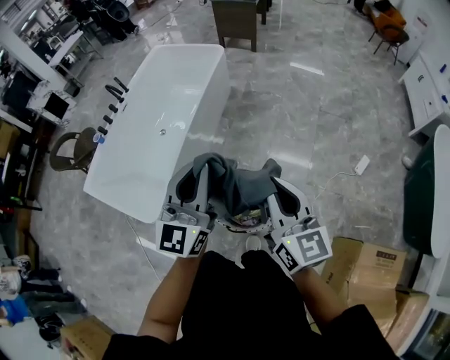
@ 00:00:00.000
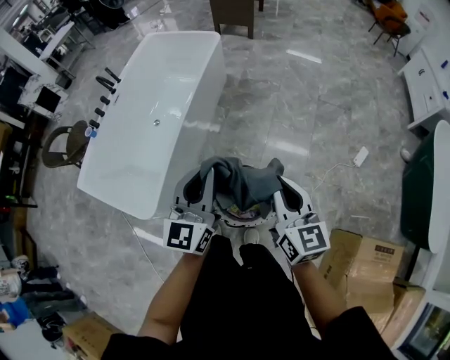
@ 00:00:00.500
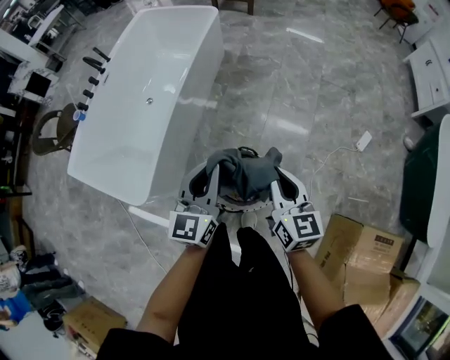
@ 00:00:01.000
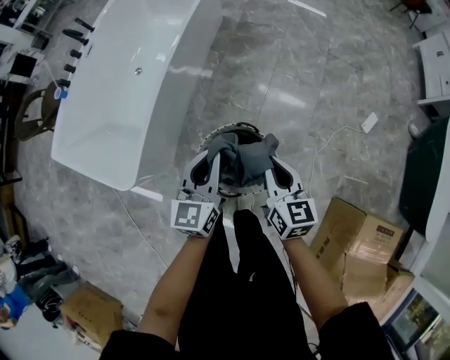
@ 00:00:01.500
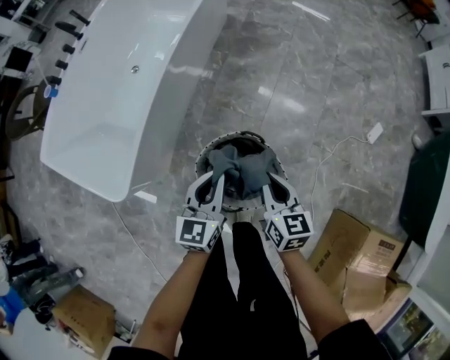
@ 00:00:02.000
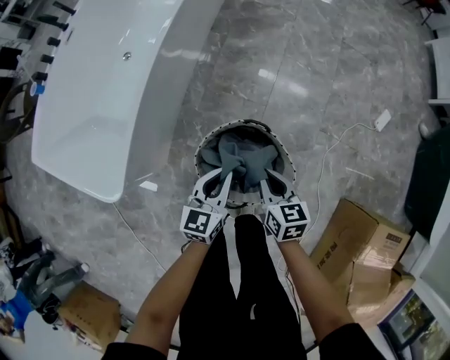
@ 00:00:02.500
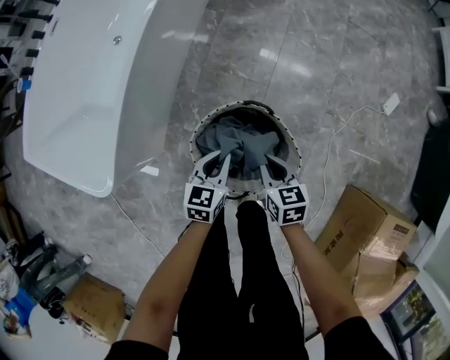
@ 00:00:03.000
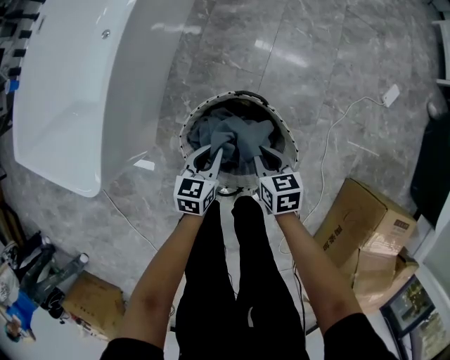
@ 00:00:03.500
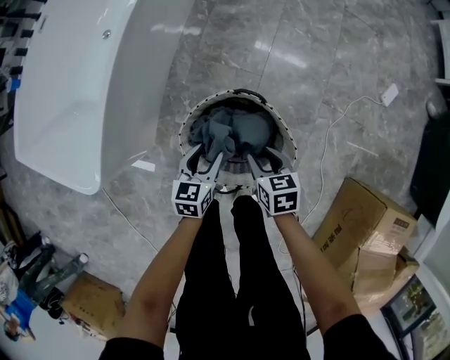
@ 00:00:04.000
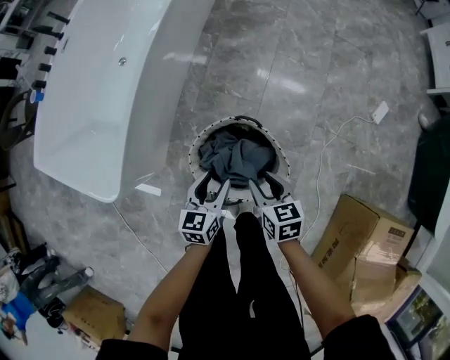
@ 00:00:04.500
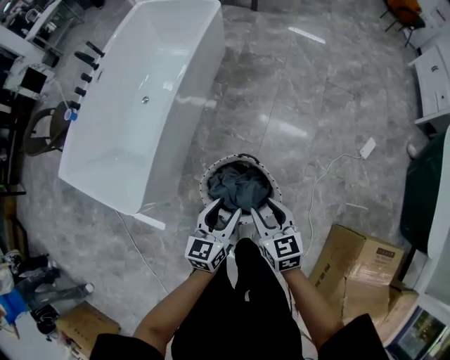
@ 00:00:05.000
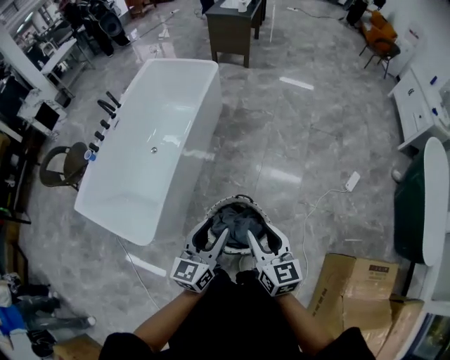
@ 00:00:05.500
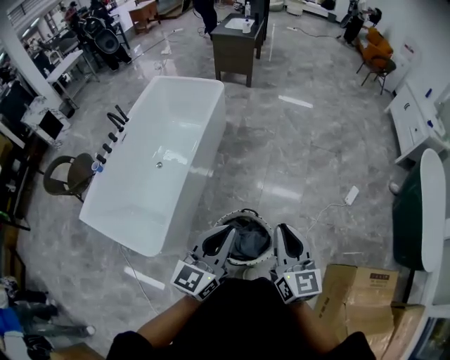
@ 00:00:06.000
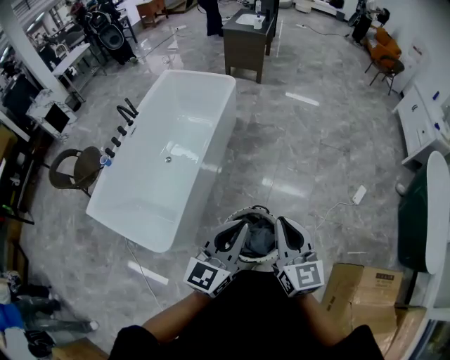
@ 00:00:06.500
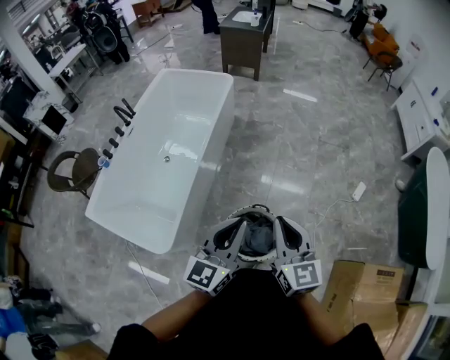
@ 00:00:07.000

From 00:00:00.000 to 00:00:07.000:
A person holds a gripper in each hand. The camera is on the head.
From 00:00:00.000 to 00:00:02.000: Both grippers move downward, about 40 cm. The right gripper changes its angle by roughly 30 degrees. Meanwhile the left gripper turns by about 30 degrees.
From 00:00:02.000 to 00:00:03.500: Both grippers travel together downward, approximately 25 cm. The left gripper swivels approximately 20 degrees, while the right gripper changes its angle by approximately 20 degrees.
From 00:00:03.500 to 00:00:05.000: Both grippers travel together upward, some 35 cm. The left gripper opens, while the right gripper swivels about 20 degrees, and opens up.
From 00:00:05.000 to 00:00:07.000: Both grippers travel together upward, some 30 cm. The right gripper rotates approximately 30 degrees, and closes up, while the left gripper turns by roughly 20 degrees, and closes.

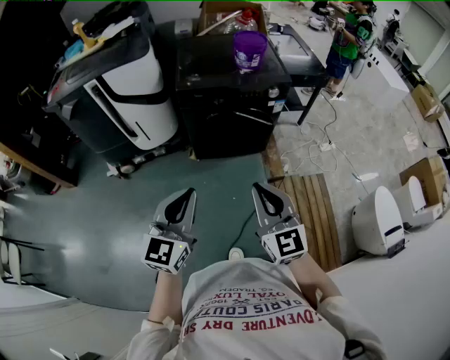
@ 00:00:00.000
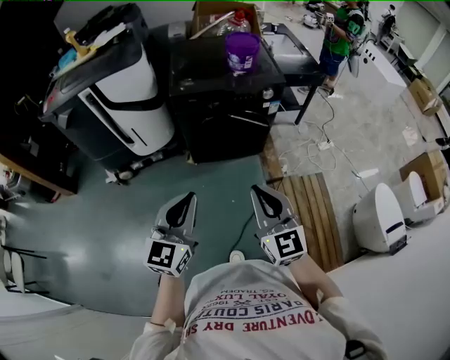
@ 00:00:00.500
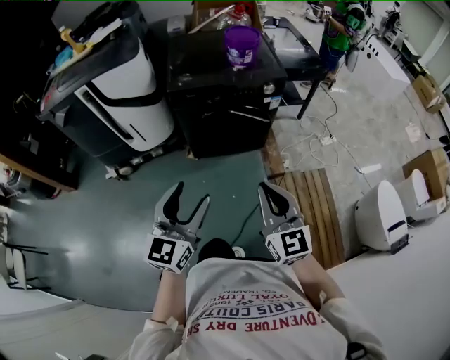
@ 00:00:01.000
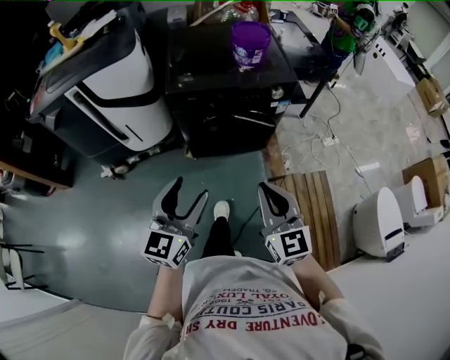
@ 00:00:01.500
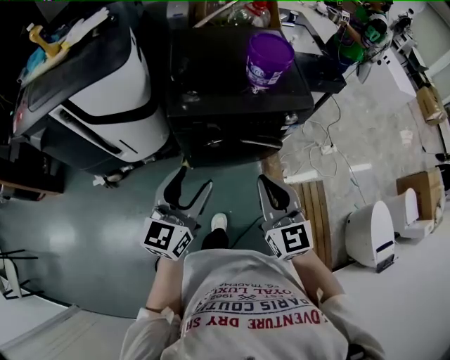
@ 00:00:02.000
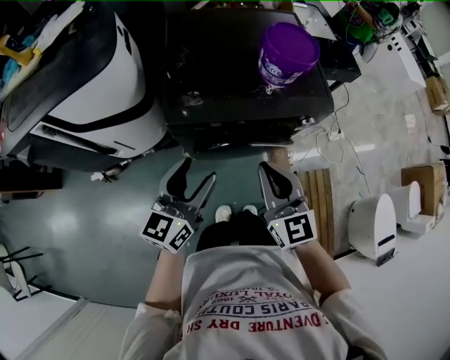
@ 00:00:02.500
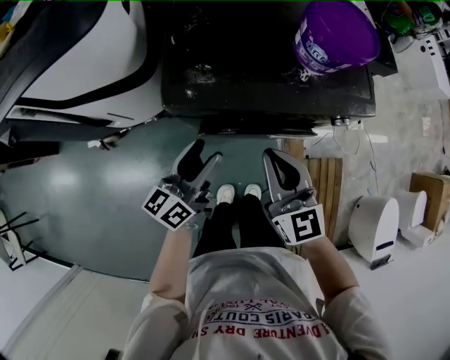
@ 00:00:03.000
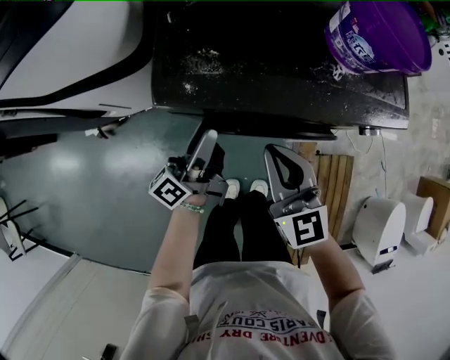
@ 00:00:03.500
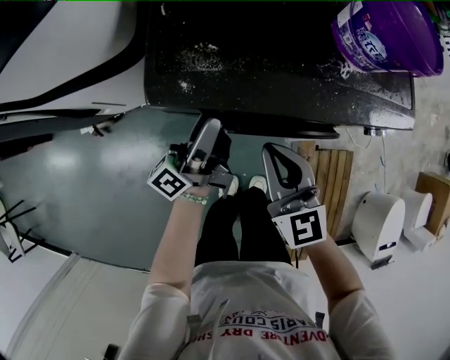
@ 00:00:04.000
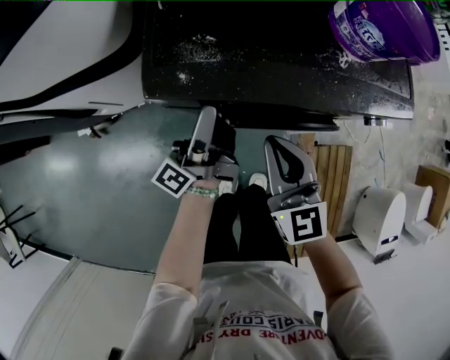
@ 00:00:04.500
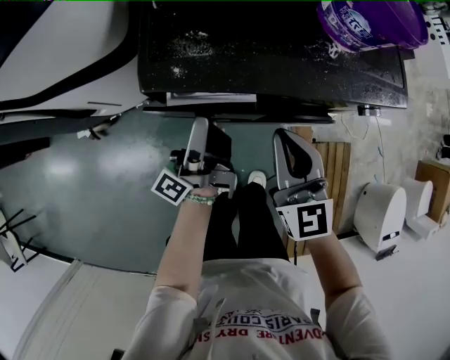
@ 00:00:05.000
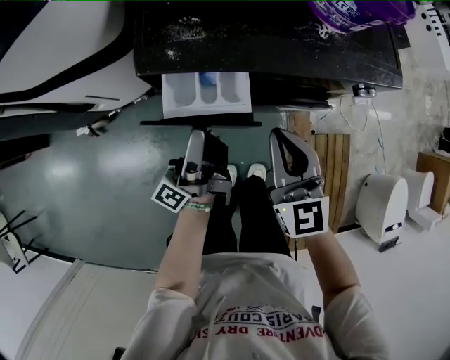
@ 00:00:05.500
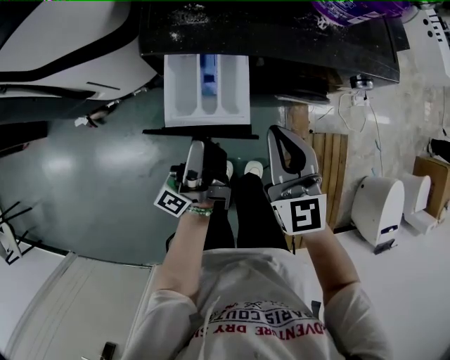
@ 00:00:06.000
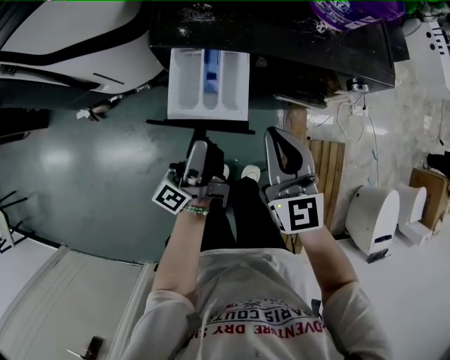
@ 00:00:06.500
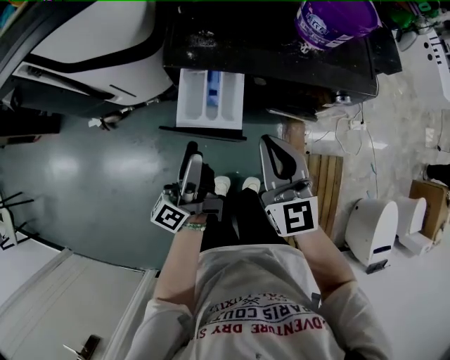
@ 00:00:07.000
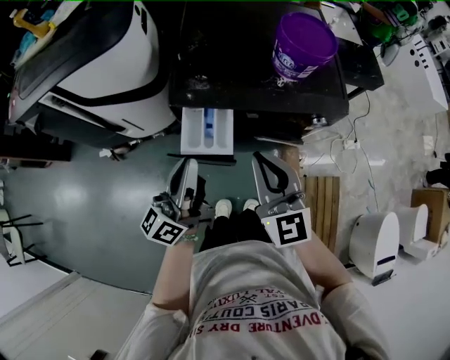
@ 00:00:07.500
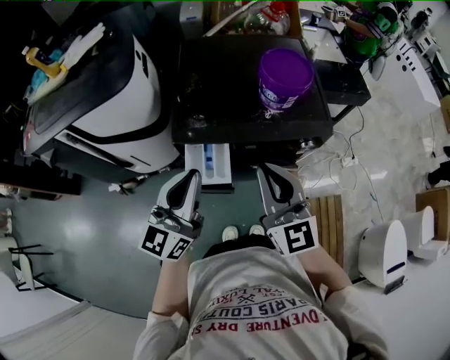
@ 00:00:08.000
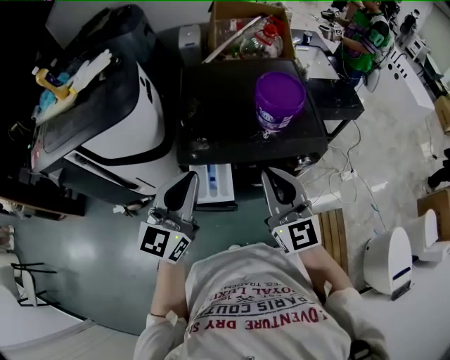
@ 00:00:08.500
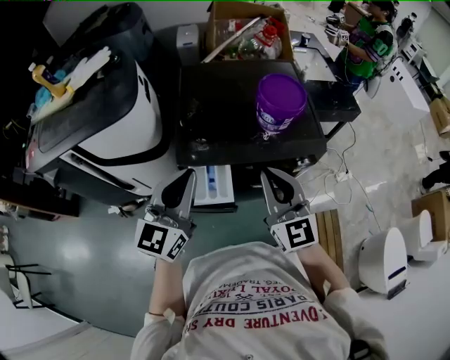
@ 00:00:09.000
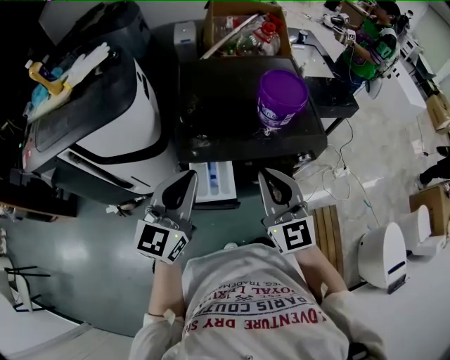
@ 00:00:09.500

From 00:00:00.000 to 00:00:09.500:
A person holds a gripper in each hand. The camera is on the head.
From 00:00:00.000 to 00:00:02.000: The grippers both shift forward by roughly 30 cm. The left gripper opens its fingers.
From 00:00:02.000 to 00:00:04.000: The left gripper travels forward and downward by about 35 cm, and rolls counterclockwise, seen from behind, by roughly 60 degrees. The right gripper heads downward and forward, covering about 30 cm.
From 00:00:04.000 to 00:00:05.500: The right gripper goes roughly 5 cm backward. Meanwhile the left gripper moves backward, about 10 cm.
From 00:00:05.500 to 00:00:07.500: The grippers both shift upward by about 20 cm. The left gripper changes its angle by about 40 degrees, and closes.
From 00:00:07.500 to 00:00:09.500: The right gripper shifts some 5 cm upward, while the left gripper heads upward and forward, covering some 10 cm, and twists some 40 degrees clockwise, seen from behind.

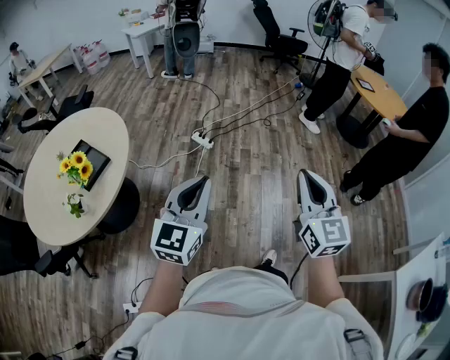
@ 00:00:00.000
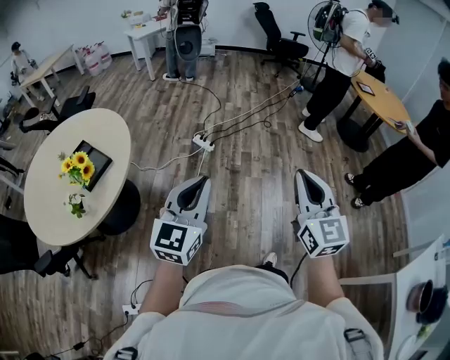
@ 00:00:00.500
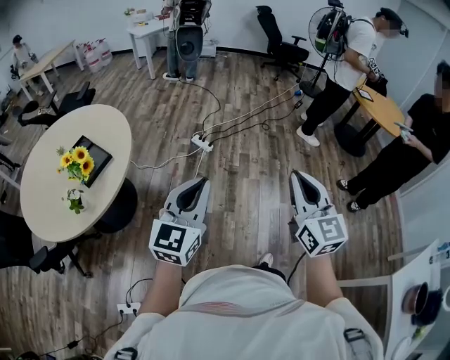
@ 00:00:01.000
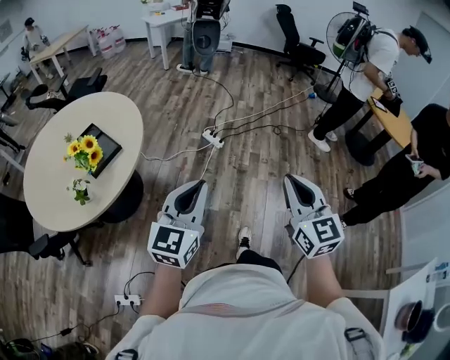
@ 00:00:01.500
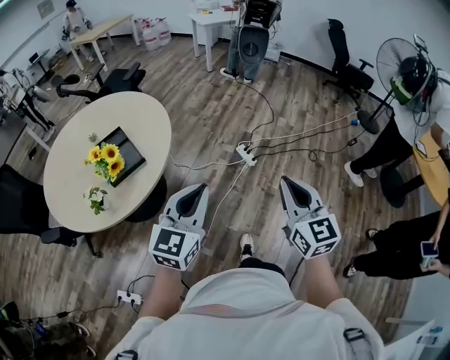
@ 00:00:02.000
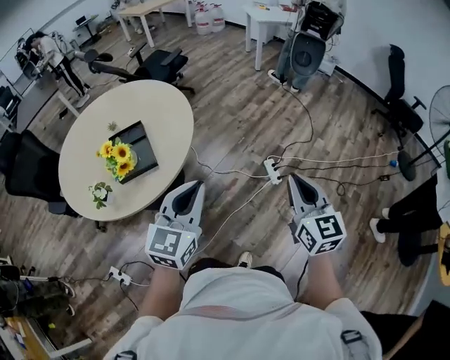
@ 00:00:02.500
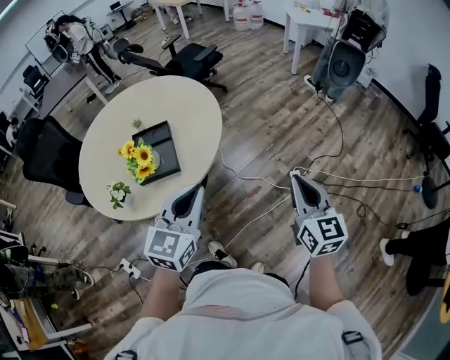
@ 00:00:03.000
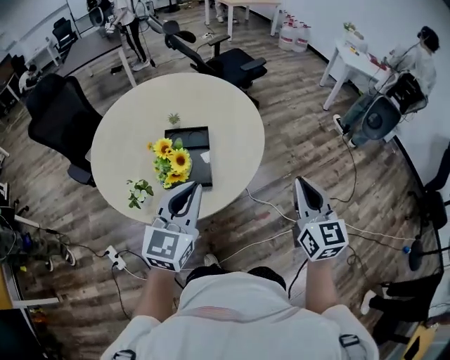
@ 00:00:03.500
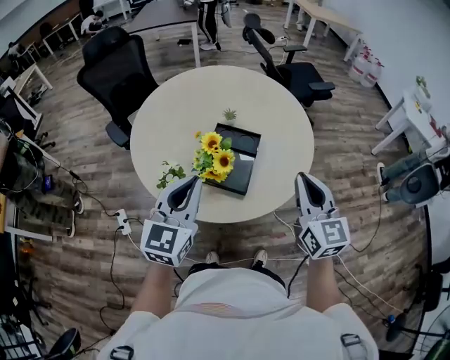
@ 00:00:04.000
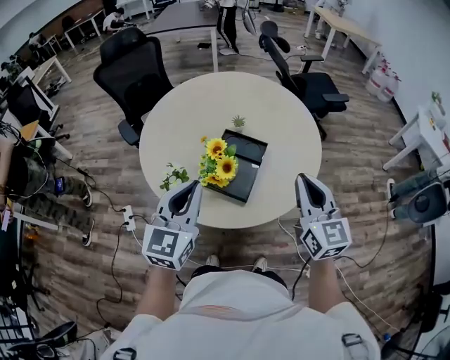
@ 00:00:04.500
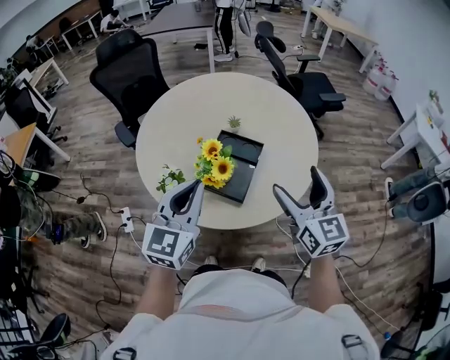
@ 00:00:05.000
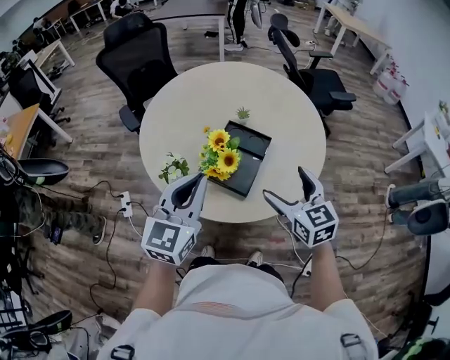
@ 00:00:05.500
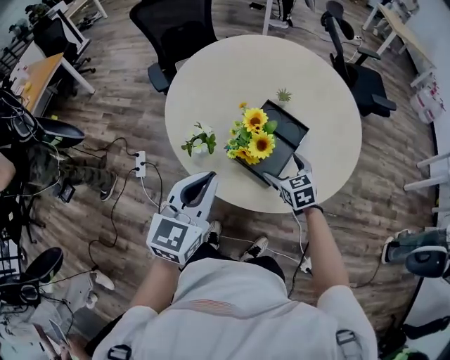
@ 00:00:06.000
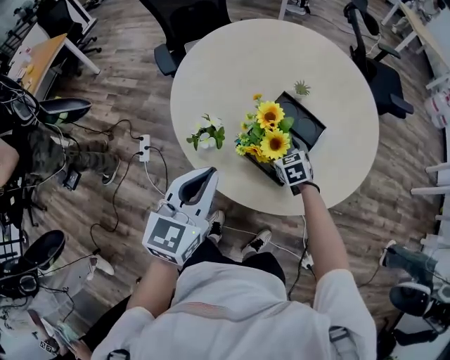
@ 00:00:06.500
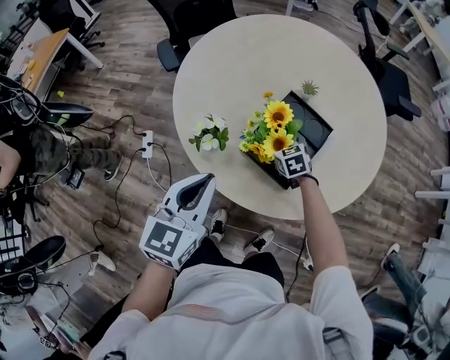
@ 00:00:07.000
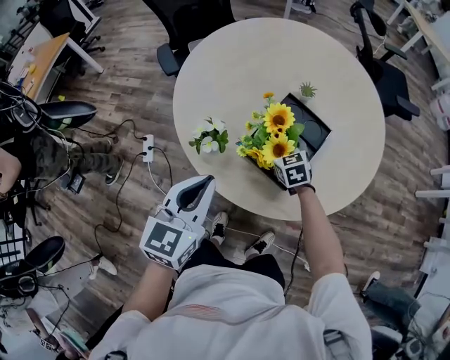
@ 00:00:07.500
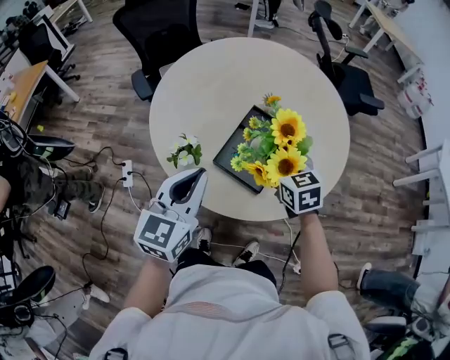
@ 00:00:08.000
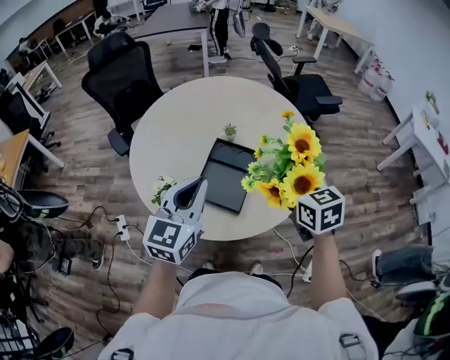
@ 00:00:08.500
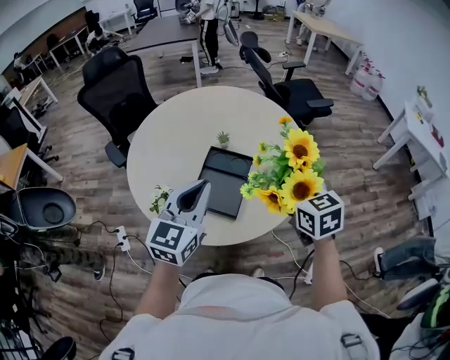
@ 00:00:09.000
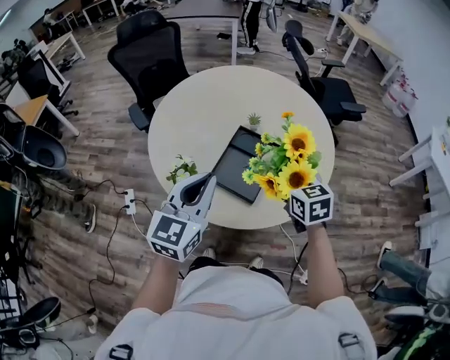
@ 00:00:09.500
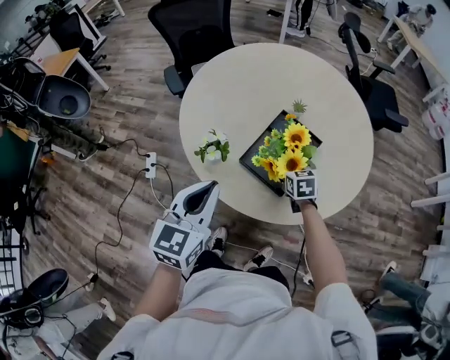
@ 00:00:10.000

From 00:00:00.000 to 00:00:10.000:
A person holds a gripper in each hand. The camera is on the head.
From 00:00:00.000 to 00:00:02.000: The right gripper shifts about 30 cm forward and to the left, and turns by some 30 degrees; the left gripper goes approximately 20 cm to the left and forward.
From 00:00:02.000 to 00:00:04.000: The two grippers travel together, roughly 50 cm. The right gripper changes its angle by some 50 degrees. Meanwhile the left gripper changes its angle by roughly 60 degrees.
From 00:00:04.000 to 00:00:06.000: The right gripper is displaced downward and forward by about 30 cm, angles its fingers downward, by roughly 40 degrees, and opens up; the left gripper moves downward, approximately 5 cm.
From 00:00:06.000 to 00:00:08.000: The right gripper heads upward, covering approximately 10 cm.
From 00:00:08.000 to 00:00:10.000: The right gripper moves downward, roughly 15 cm. The left gripper reaches about 10 cm to the right, then returns.
